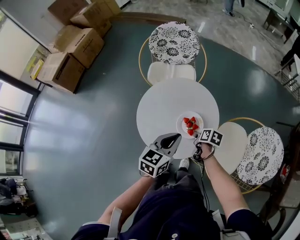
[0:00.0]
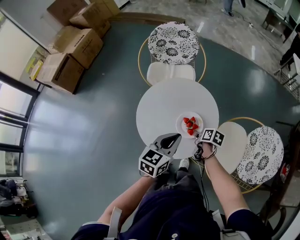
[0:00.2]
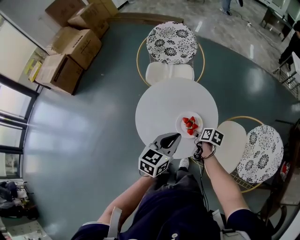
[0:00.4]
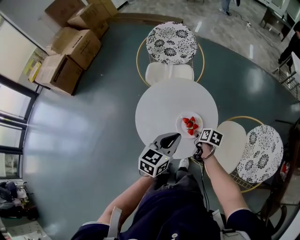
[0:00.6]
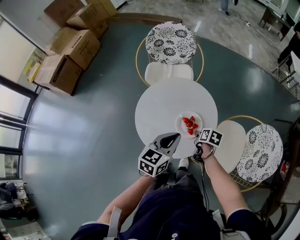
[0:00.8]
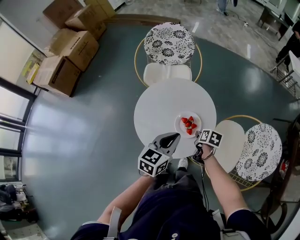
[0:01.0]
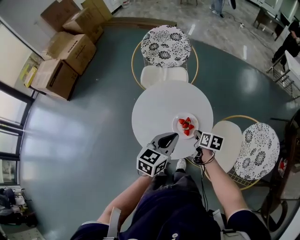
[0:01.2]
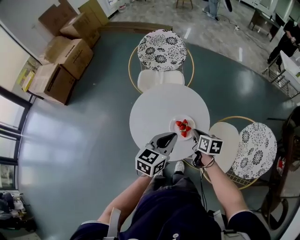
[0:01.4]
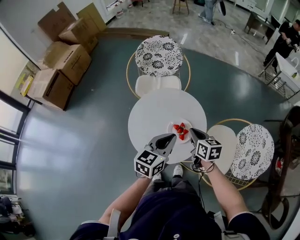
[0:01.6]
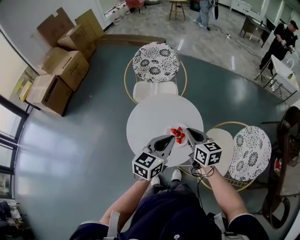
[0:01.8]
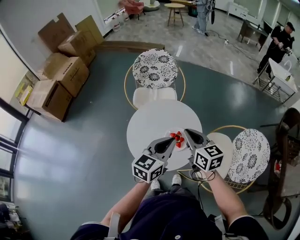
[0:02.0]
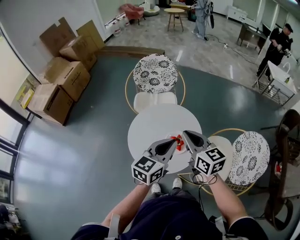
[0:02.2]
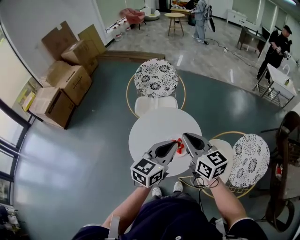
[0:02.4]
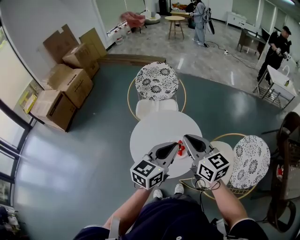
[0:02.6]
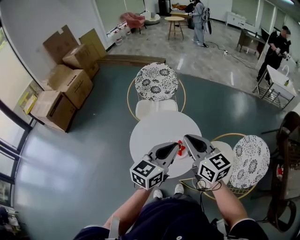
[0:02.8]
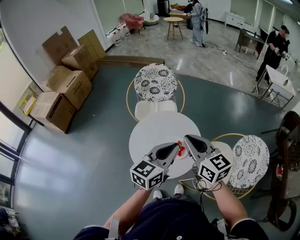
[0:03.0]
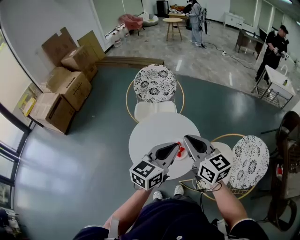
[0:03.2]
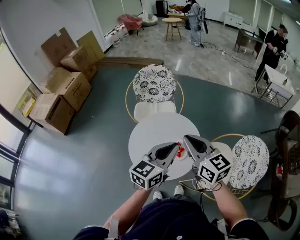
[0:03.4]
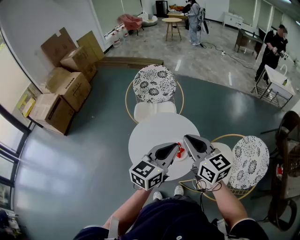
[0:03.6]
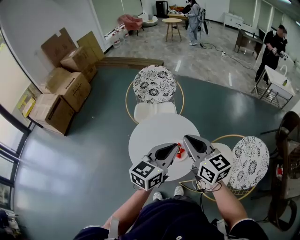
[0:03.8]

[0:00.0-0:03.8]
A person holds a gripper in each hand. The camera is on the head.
0:00.0 to 0:01.2: There are only small adjustments of the grippers.
0:01.2 to 0:02.6: The left gripper shifts approximately 15 cm upward. Meanwhile the right gripper heads upward, covering some 30 cm, and points its fingers approximately 40 degrees further upward.
0:02.6 to 0:03.8: There are only small adjustments of the grippers.

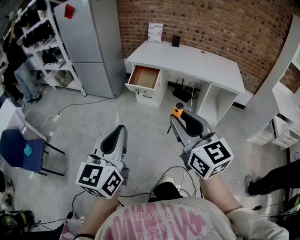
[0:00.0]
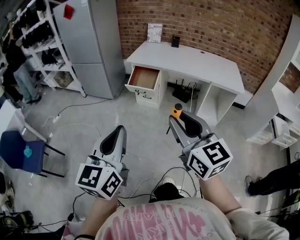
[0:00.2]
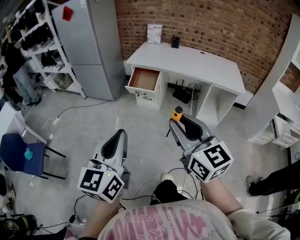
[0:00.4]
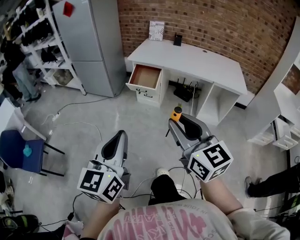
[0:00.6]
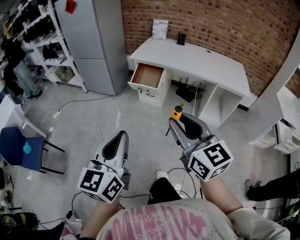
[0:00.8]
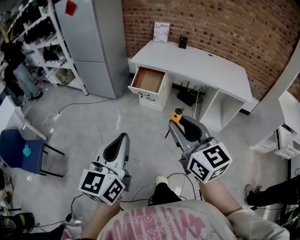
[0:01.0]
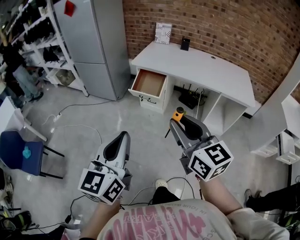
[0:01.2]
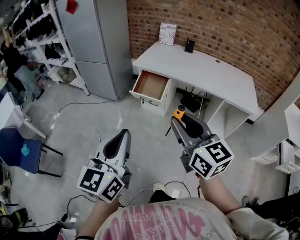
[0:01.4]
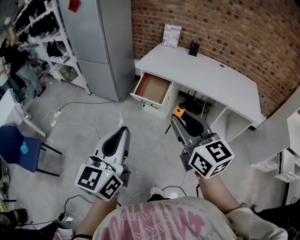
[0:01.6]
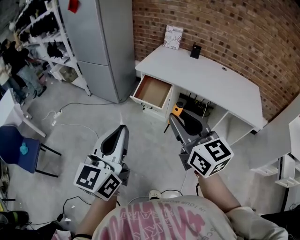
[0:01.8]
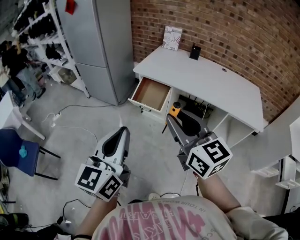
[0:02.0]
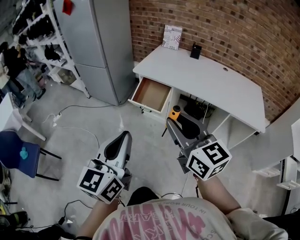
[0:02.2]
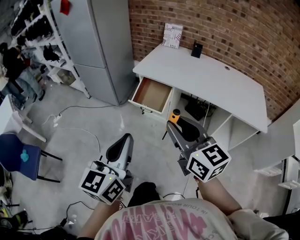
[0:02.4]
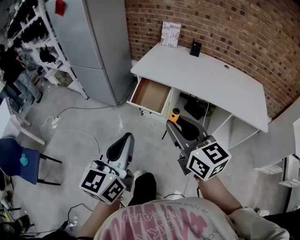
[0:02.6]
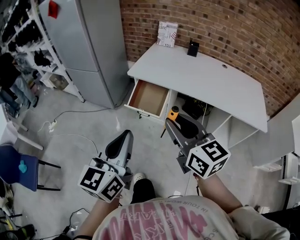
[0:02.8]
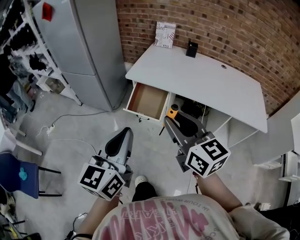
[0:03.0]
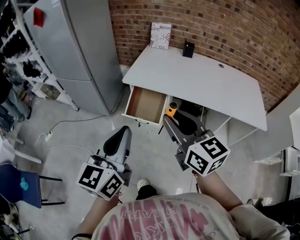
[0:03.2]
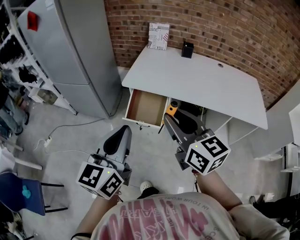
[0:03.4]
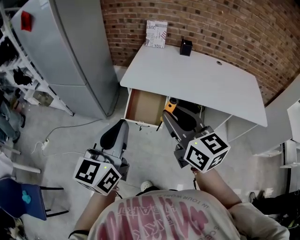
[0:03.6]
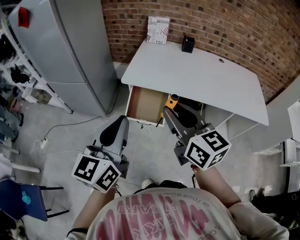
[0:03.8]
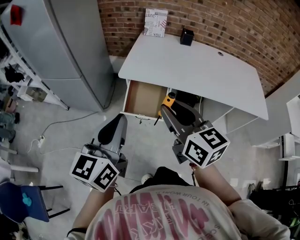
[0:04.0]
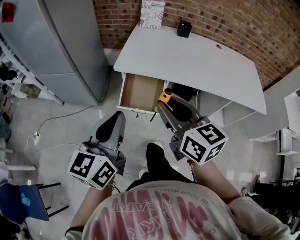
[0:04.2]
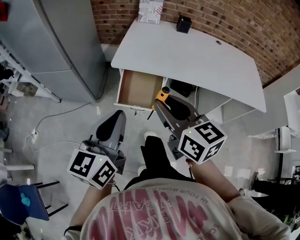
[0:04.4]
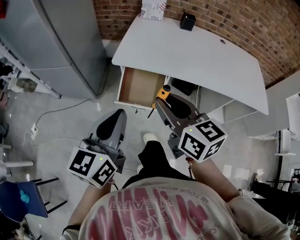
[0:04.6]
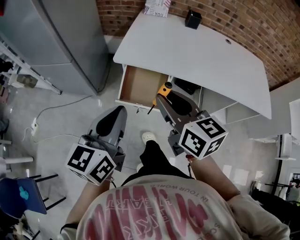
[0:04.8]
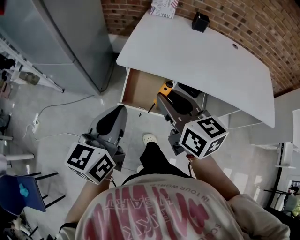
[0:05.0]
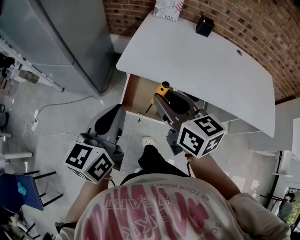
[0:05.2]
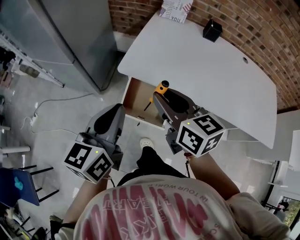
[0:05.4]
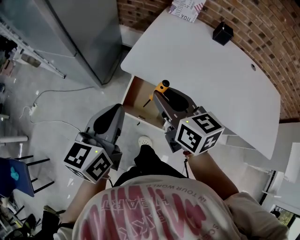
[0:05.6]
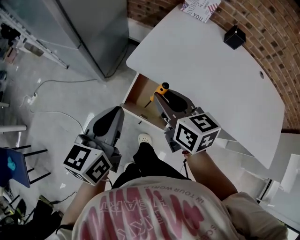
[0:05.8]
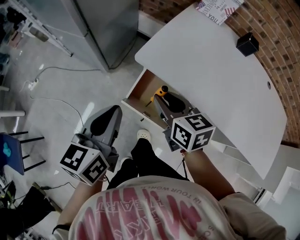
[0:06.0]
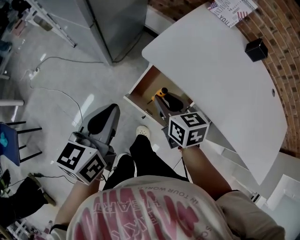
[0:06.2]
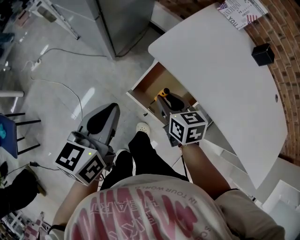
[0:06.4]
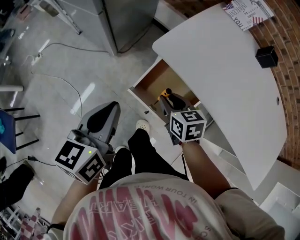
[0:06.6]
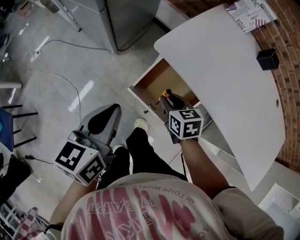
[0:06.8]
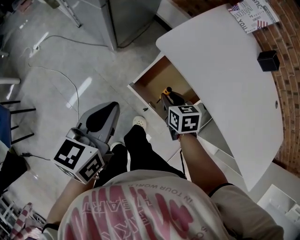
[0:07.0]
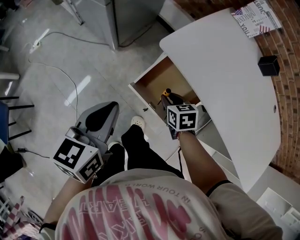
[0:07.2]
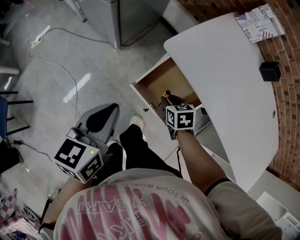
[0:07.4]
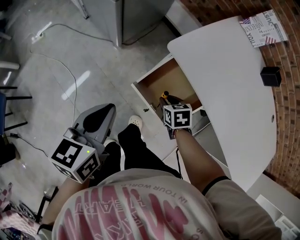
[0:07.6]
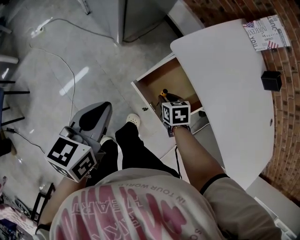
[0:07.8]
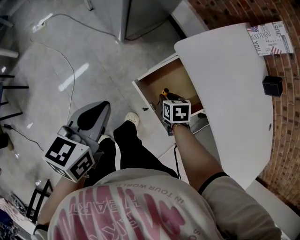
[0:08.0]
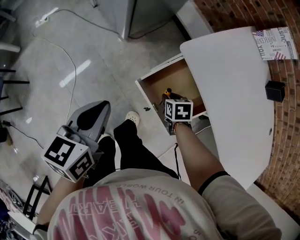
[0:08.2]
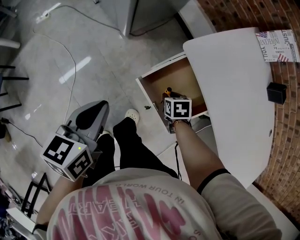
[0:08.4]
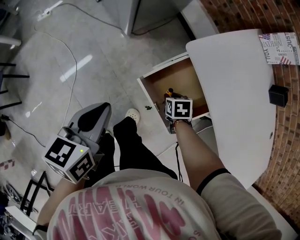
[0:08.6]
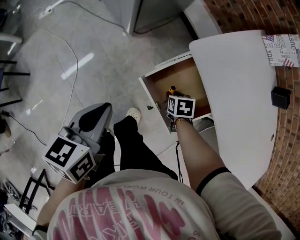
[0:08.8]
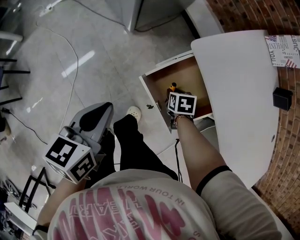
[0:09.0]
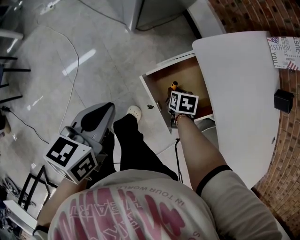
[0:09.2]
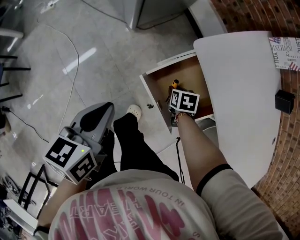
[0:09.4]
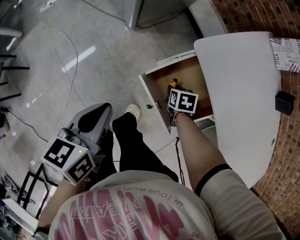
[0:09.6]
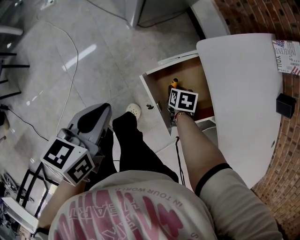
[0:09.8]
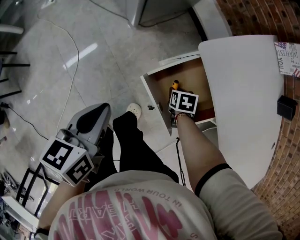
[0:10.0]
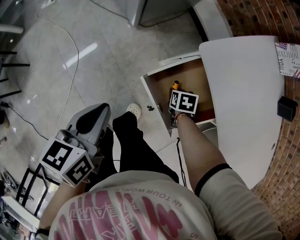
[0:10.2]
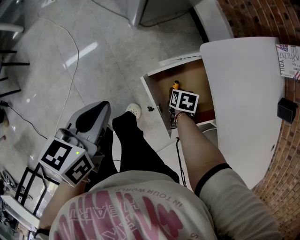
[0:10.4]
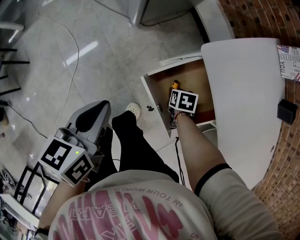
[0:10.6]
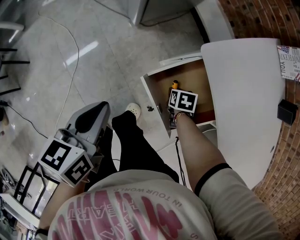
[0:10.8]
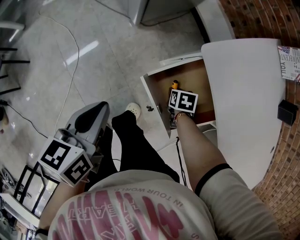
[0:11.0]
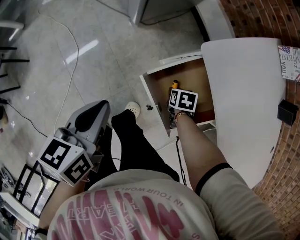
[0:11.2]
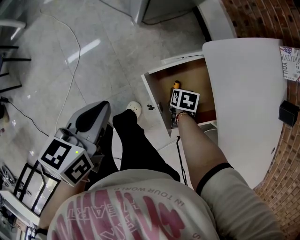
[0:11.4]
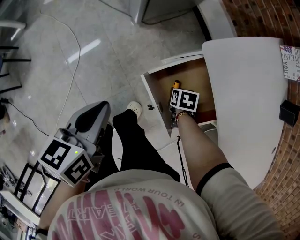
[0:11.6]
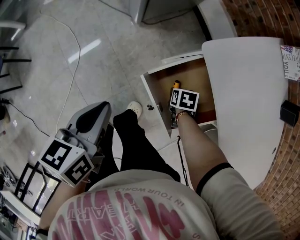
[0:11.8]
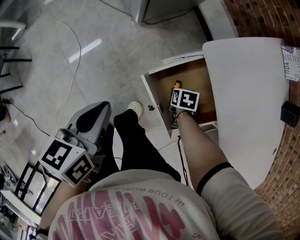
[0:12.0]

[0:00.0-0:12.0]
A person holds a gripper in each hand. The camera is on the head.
0:00.0 to 0:01.6: The two grippers go approximately 20 cm forward.
0:01.6 to 0:03.0: Both grippers move forward, some 20 cm.
0:03.0 to 0:04.4: Both grippers move forward, to the left and downward, some 20 cm.
0:04.4 to 0:06.0: Both grippers move forward and downward, approximately 25 cm. The left gripper swivels about 30 degrees. Meanwhile the right gripper swivels approximately 30 degrees.
0:06.0 to 0:07.6: The left gripper shifts roughly 10 cm downward and to the left, while the right gripper travels downward by roughly 25 cm, and points its fingers roughly 30 degrees further downward.
0:07.6 to 0:09.0: Both grippers travel together downward, some 5 cm.
0:09.0 to 0:12.0: The grippers move only a little.

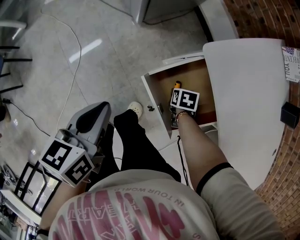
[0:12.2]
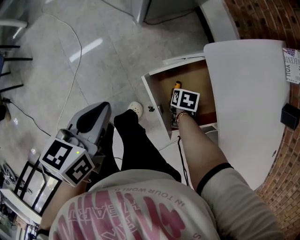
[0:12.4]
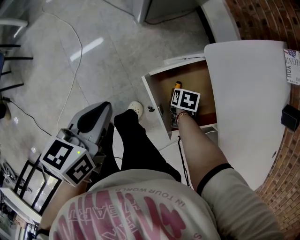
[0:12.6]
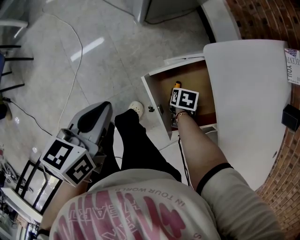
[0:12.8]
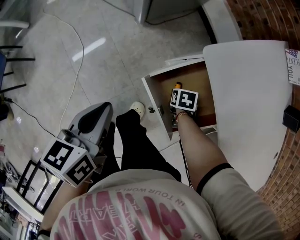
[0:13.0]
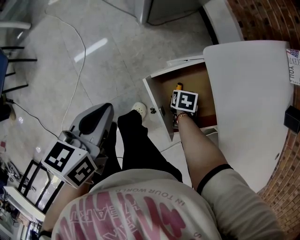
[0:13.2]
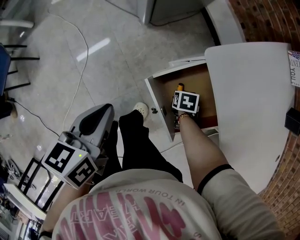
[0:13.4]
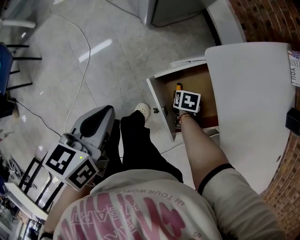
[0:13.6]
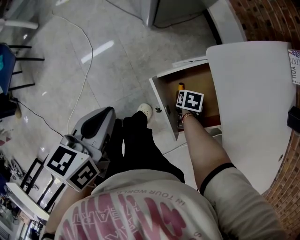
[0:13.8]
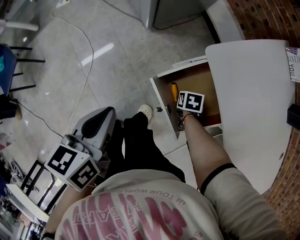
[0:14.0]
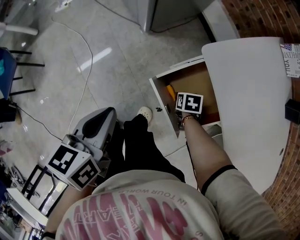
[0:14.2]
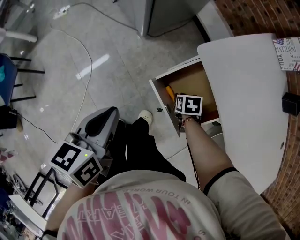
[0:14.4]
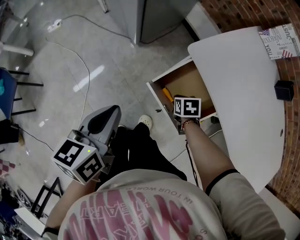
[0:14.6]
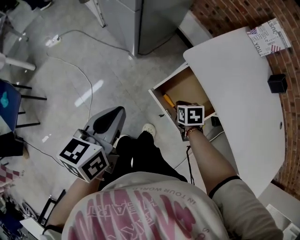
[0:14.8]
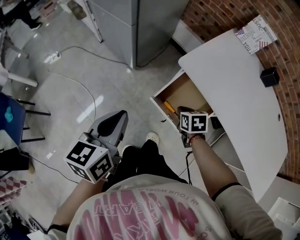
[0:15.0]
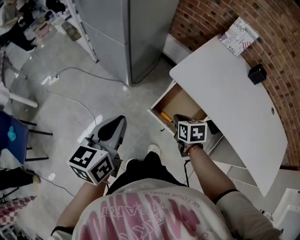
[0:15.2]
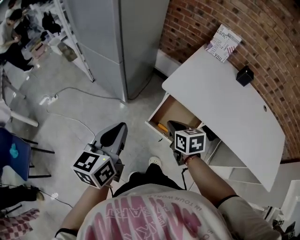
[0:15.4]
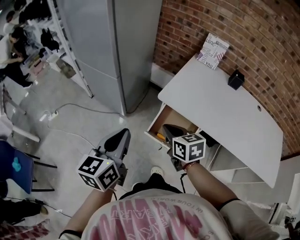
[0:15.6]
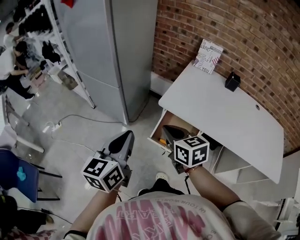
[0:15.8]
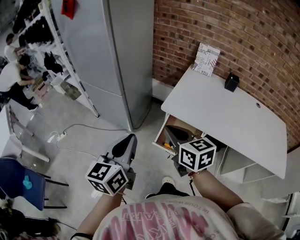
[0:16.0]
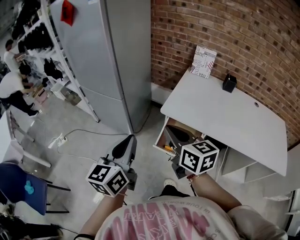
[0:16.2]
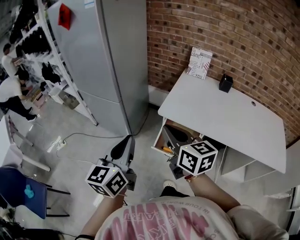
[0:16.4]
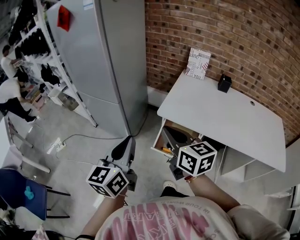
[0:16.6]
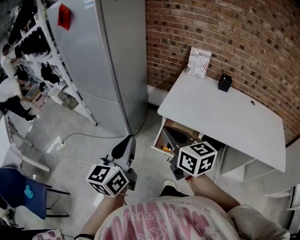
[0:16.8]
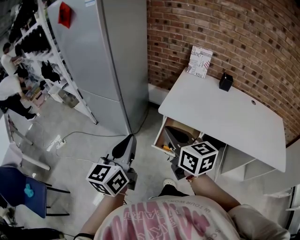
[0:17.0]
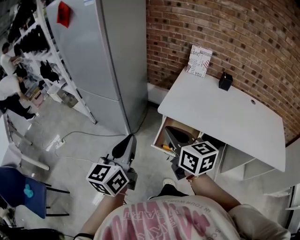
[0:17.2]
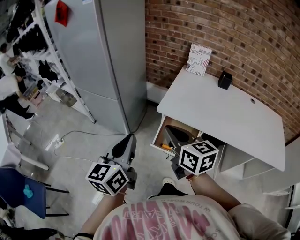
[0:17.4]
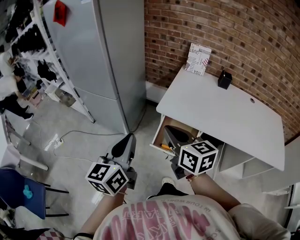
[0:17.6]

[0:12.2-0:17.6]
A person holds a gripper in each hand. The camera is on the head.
0:12.2 to 0:13.6: The grippers make only small movements.
0:13.6 to 0:15.0: The right gripper moves upward, some 20 cm, turns by approximately 20 degrees, and closes up. Meanwhile the left gripper is displaced upward by roughly 10 cm, and rotates approximately 30 degrees.
0:15.0 to 0:16.2: The left gripper goes some 15 cm upward, and rotates some 20 degrees; the right gripper shifts roughly 35 cm upward, and tilts its fingers roughly 50 degrees upward.
0:16.2 to 0:17.6: There are only small adjustments of the grippers.

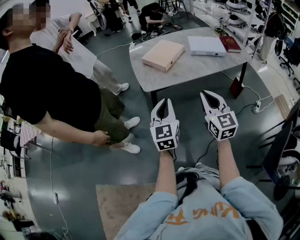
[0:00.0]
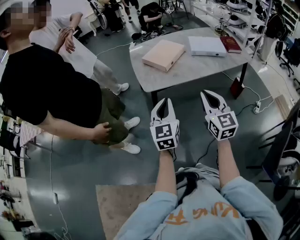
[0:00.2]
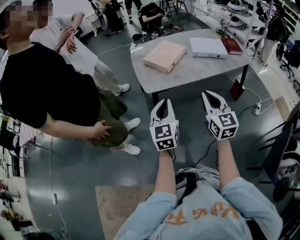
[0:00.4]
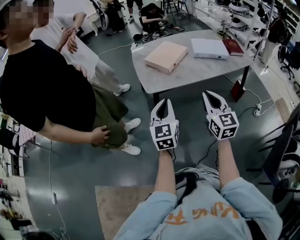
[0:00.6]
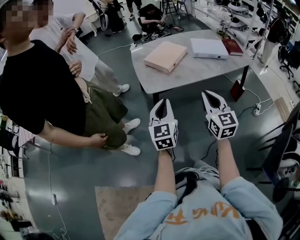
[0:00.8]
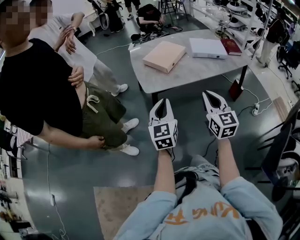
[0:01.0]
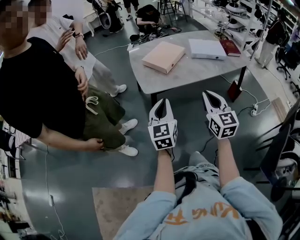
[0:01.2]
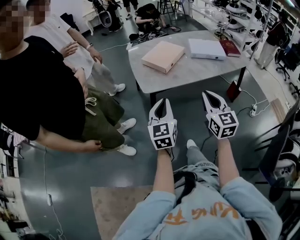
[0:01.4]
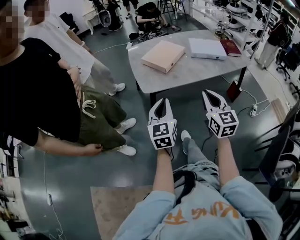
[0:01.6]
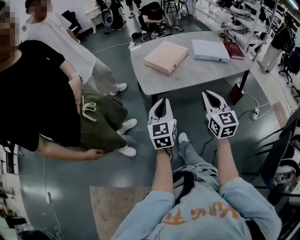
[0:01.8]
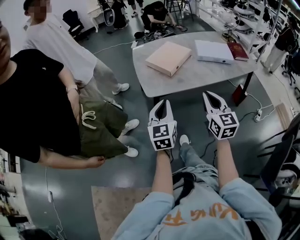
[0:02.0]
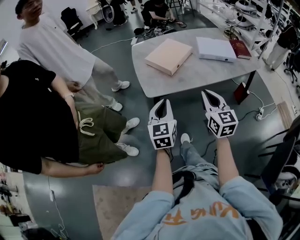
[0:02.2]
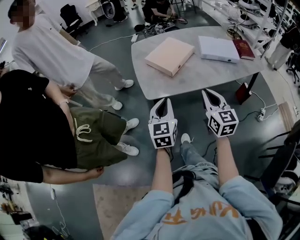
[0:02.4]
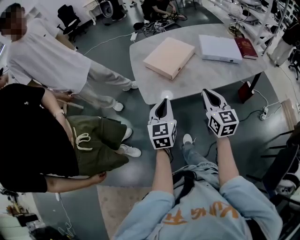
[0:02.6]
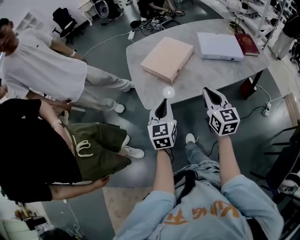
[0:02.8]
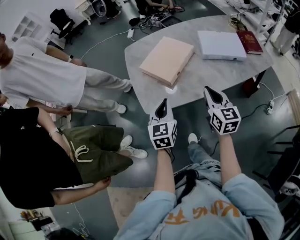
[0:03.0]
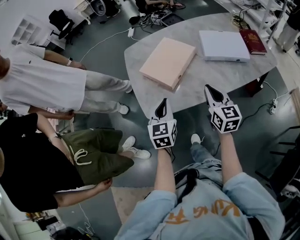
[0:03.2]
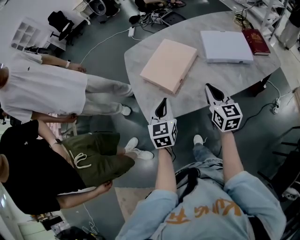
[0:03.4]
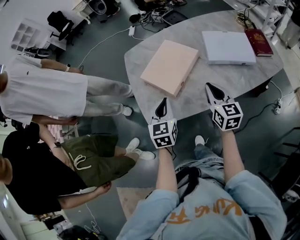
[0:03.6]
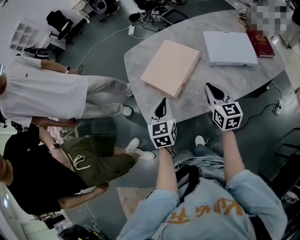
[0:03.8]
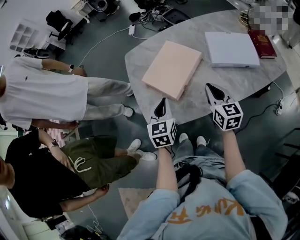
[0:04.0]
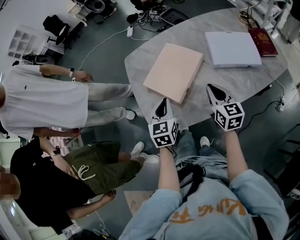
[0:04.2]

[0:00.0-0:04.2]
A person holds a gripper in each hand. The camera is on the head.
0:00.0 to 0:01.4: There are only small adjustments of the grippers.
0:01.4 to 0:02.8: The two grippers go roughly 20 cm forward.
0:02.8 to 0:04.2: The grippers both shift forward by approximately 20 cm.
